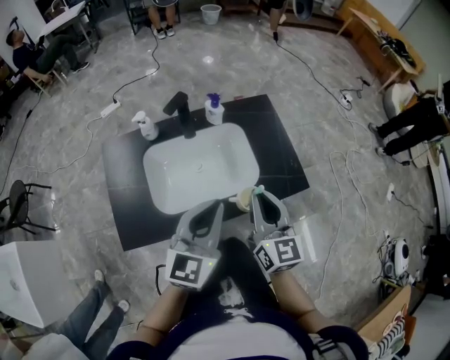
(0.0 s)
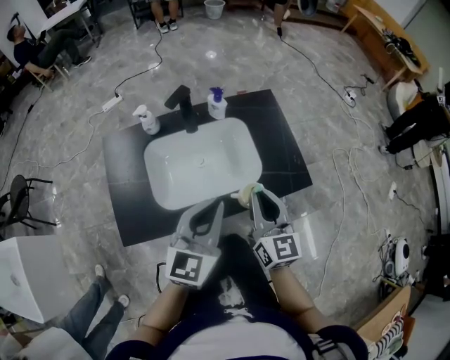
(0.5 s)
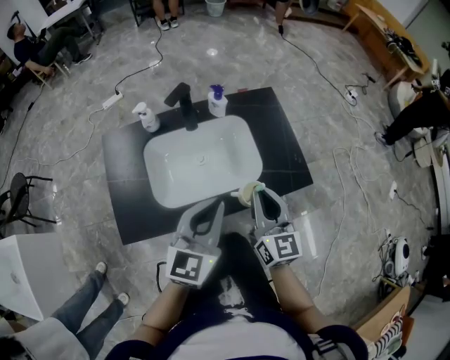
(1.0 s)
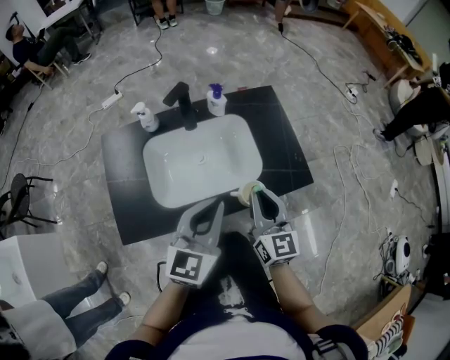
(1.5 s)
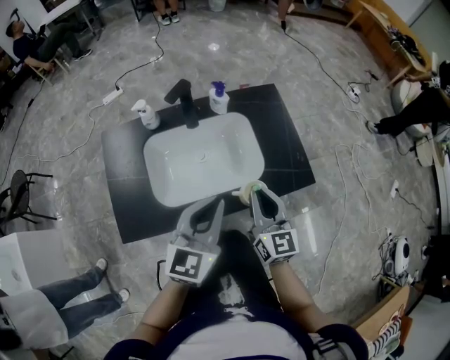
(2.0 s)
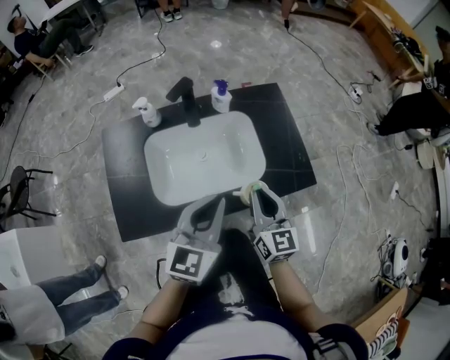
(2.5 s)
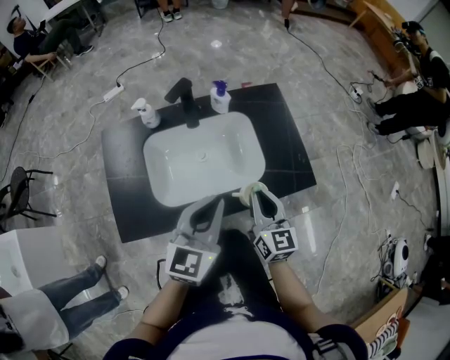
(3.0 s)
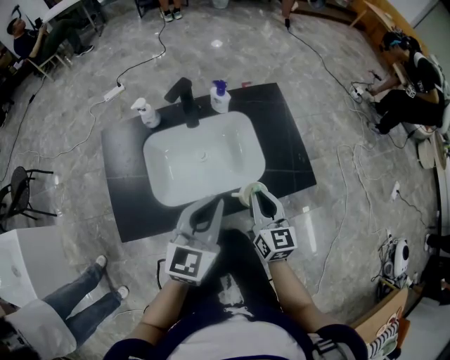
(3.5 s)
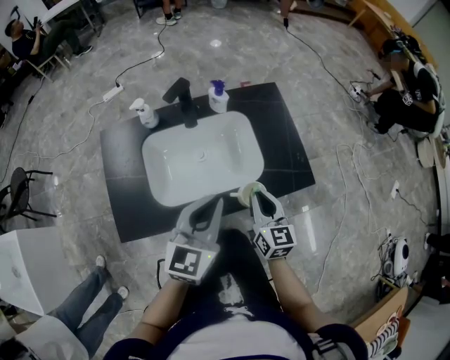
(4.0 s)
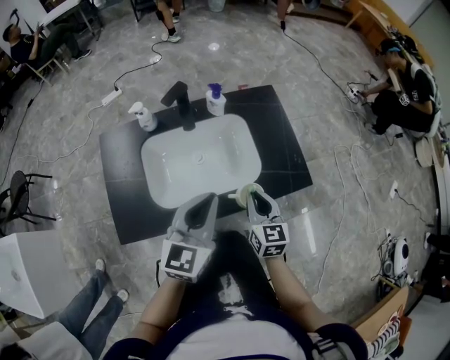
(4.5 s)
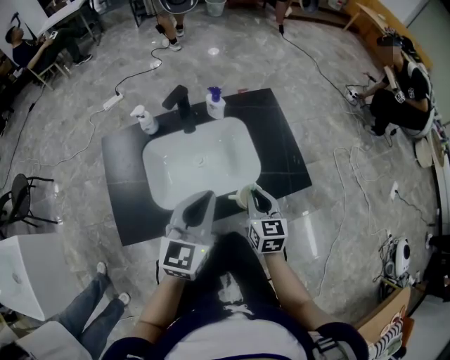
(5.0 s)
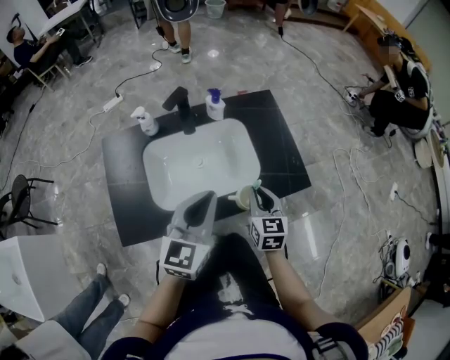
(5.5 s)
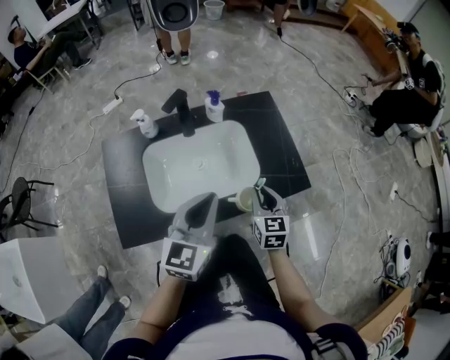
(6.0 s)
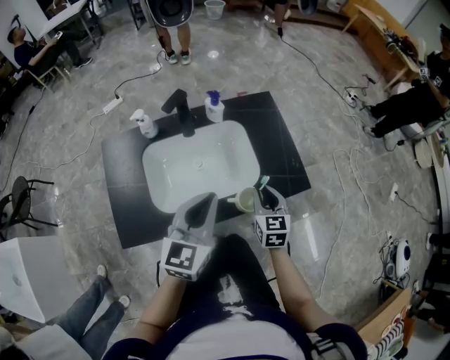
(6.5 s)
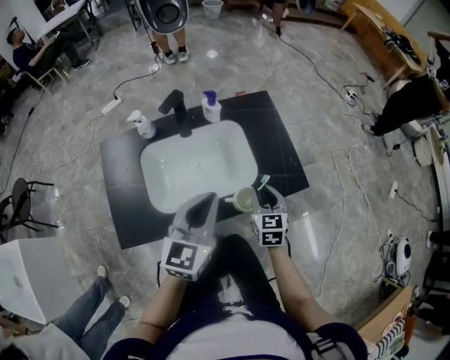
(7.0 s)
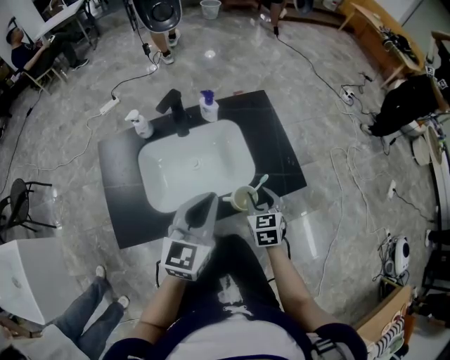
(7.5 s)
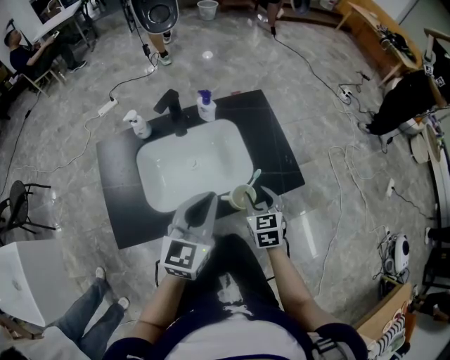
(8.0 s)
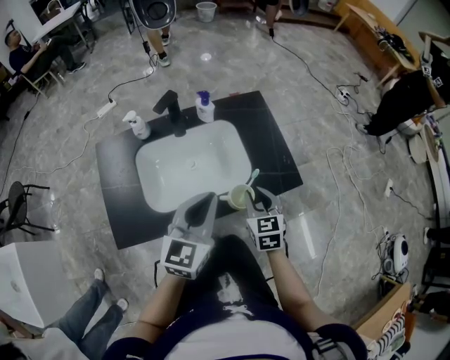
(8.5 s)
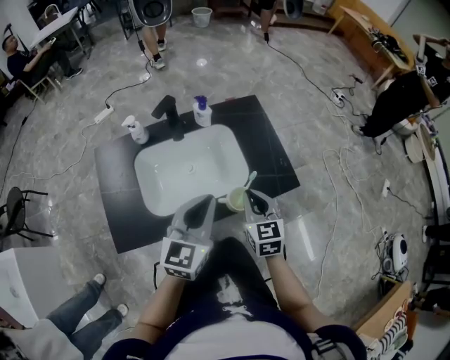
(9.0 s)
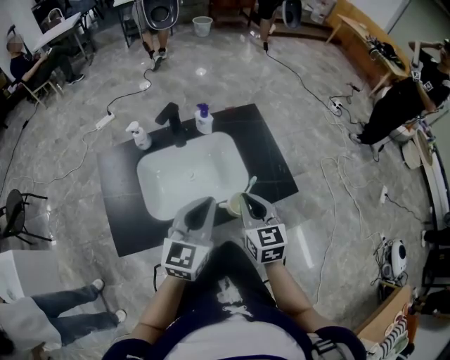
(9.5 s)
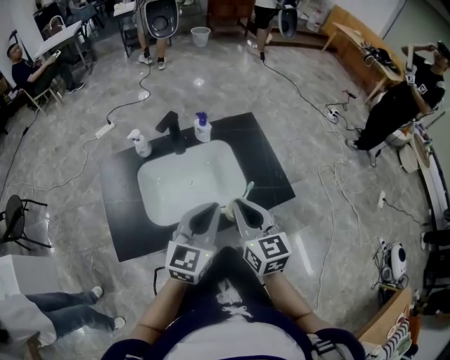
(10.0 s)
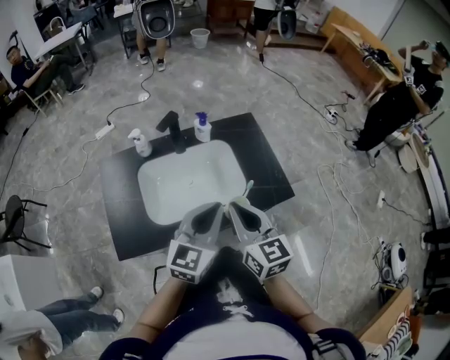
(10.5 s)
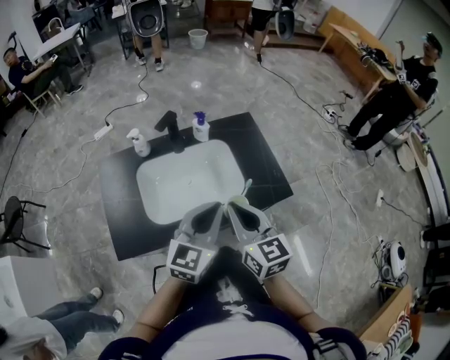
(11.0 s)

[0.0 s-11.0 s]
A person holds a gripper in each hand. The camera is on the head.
0.0 to 2.0 s: The right gripper heads downward, covering approximately 5 cm.
2.0 to 3.5 s: The grippers stay close to where they were, moving slightly.
3.5 to 5.5 s: The grippers stay close to where they were, moving slightly.
5.5 to 7.5 s: The right gripper opens its fingers.
7.5 to 9.0 s: The right gripper shifts about 10 cm upward, and closes up.
9.0 to 11.0 s: The right gripper shifts some 15 cm upward, to the left and backward.

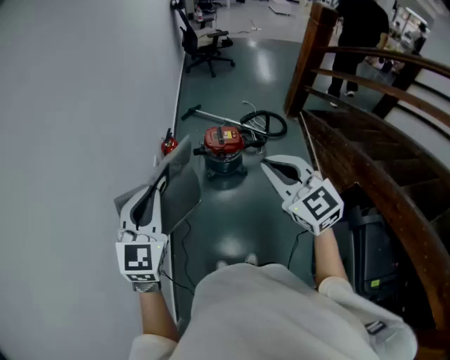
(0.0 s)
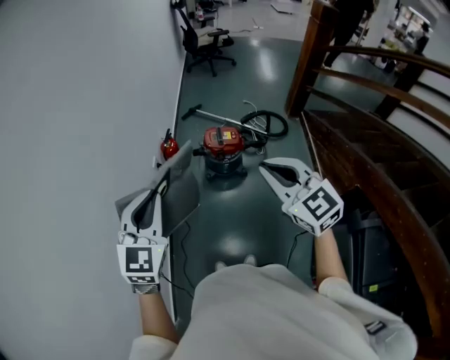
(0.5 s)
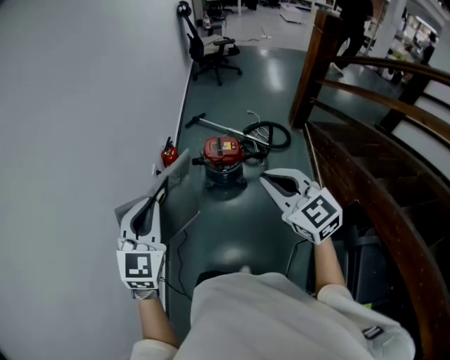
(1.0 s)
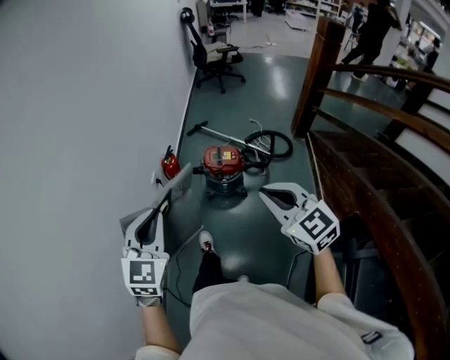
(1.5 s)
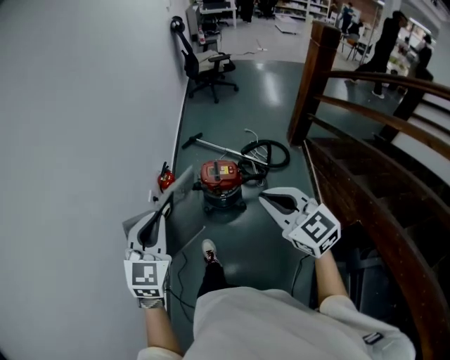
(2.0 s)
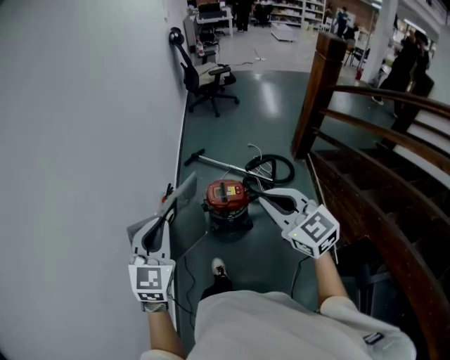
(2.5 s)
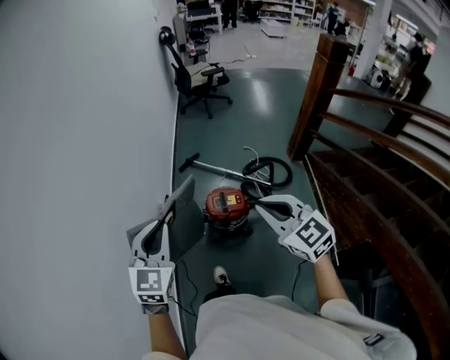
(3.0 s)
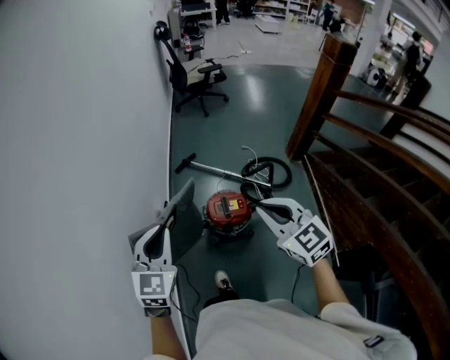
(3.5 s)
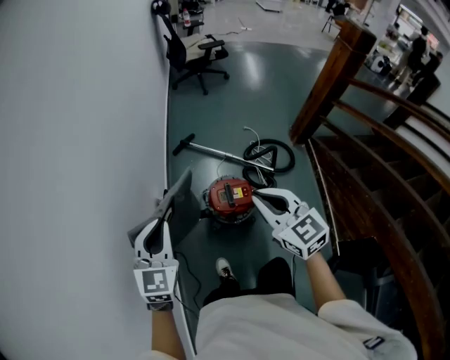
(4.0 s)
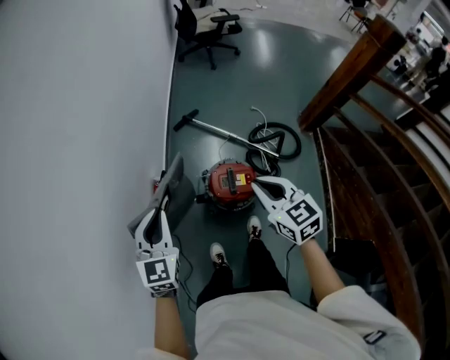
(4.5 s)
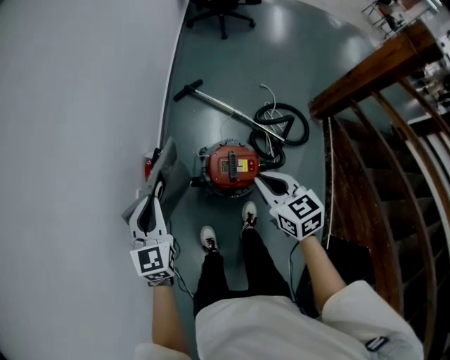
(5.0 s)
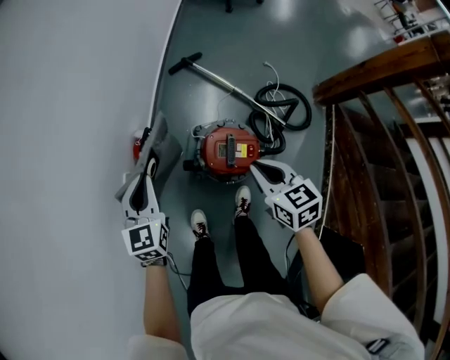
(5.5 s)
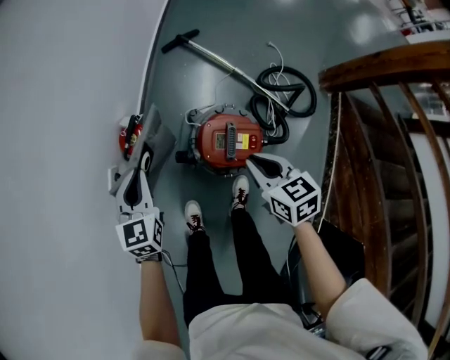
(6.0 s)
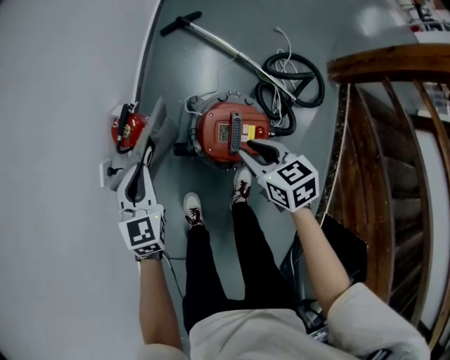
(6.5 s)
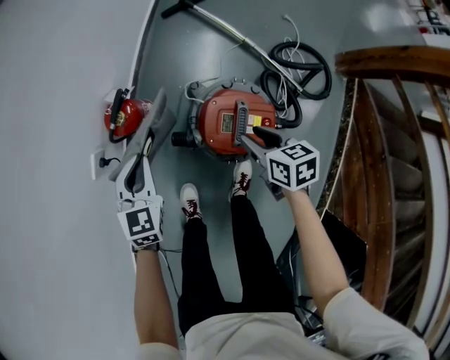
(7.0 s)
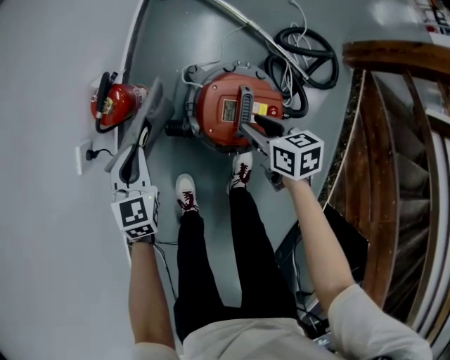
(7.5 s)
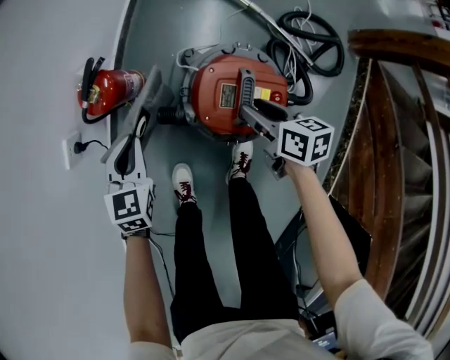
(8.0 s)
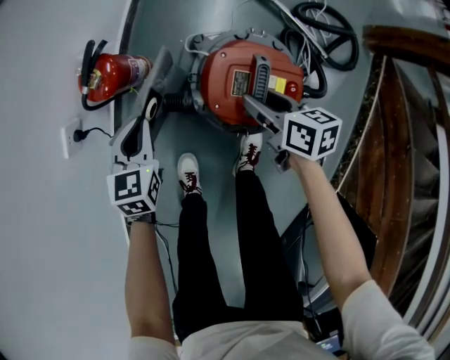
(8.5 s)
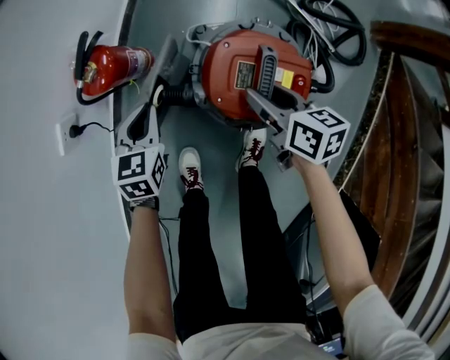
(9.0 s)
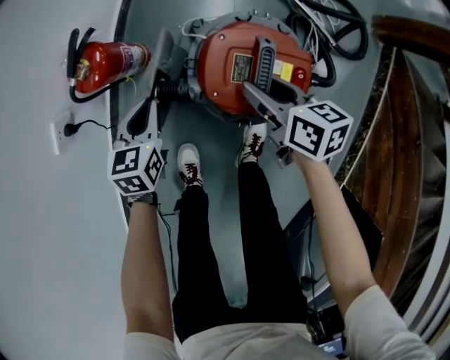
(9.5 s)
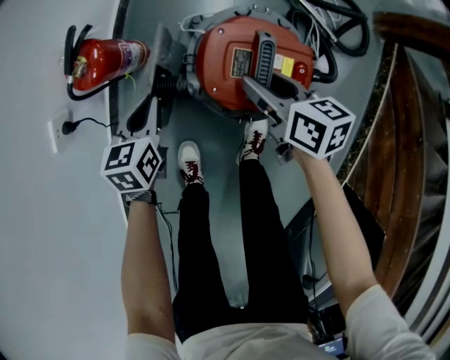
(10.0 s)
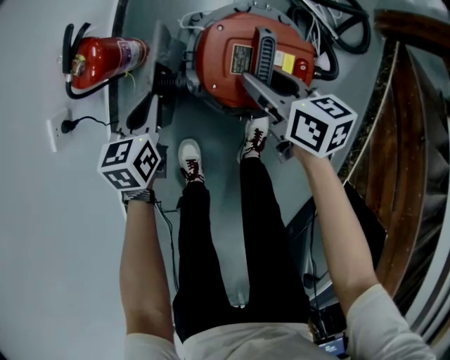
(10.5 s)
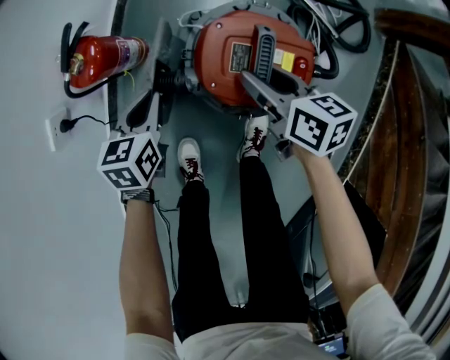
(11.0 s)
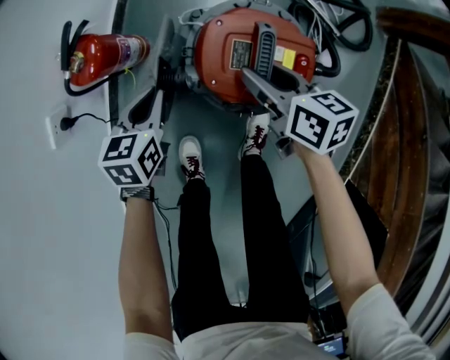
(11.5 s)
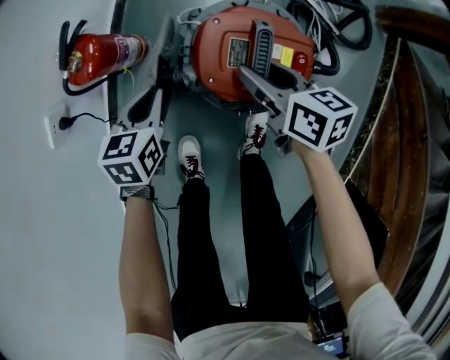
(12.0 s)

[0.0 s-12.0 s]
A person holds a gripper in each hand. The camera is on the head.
0.0 to 2.0 s: The grippers both shift to the right and forward by some 15 cm.
2.0 to 4.0 s: The grippers both shift forward by roughly 35 cm.
4.0 to 6.0 s: Both grippers move downward, about 35 cm. The right gripper swivels some 30 degrees. Meanwhile the left gripper rotates some 30 degrees.
6.0 to 8.0 s: The grippers both shift downward by some 20 cm. The right gripper swivels some 20 degrees, and opens its fingers.
8.0 to 10.0 s: The left gripper moves downward, about 10 cm.
10.0 to 12.0 s: The grippers stay close to where they were, moving slightly.

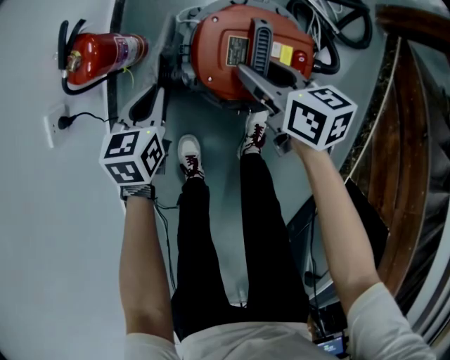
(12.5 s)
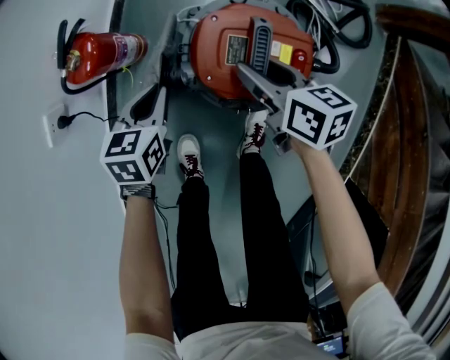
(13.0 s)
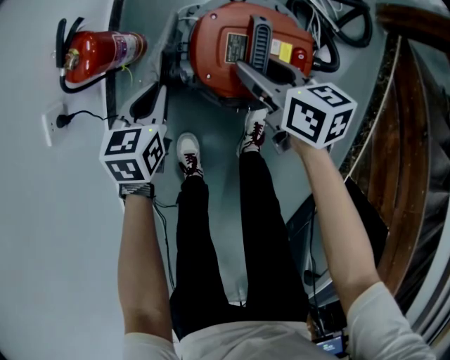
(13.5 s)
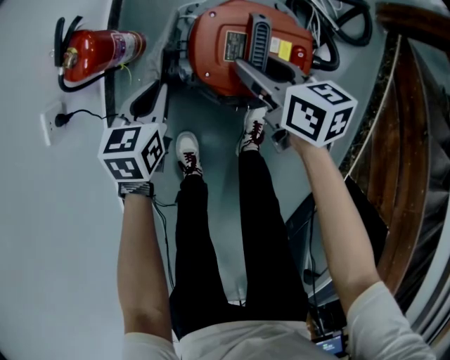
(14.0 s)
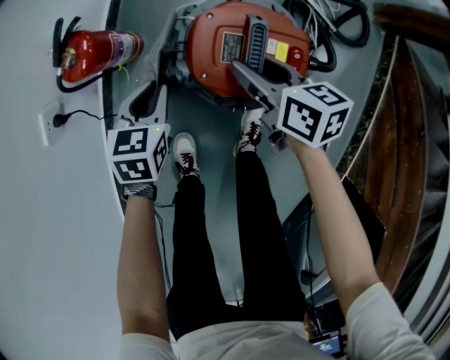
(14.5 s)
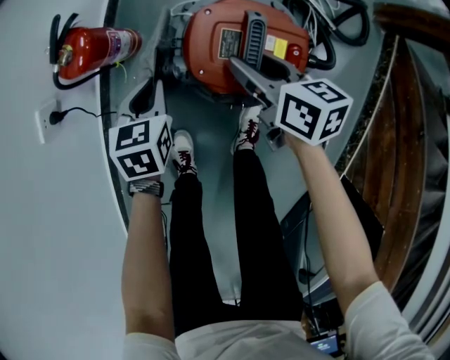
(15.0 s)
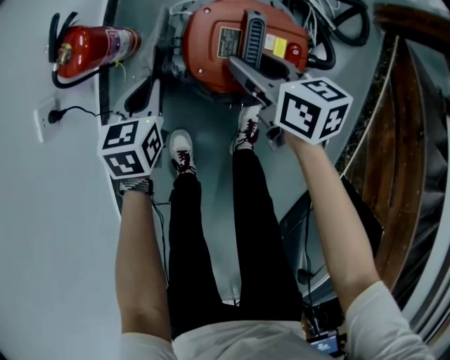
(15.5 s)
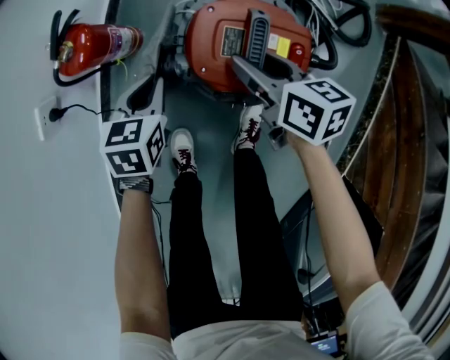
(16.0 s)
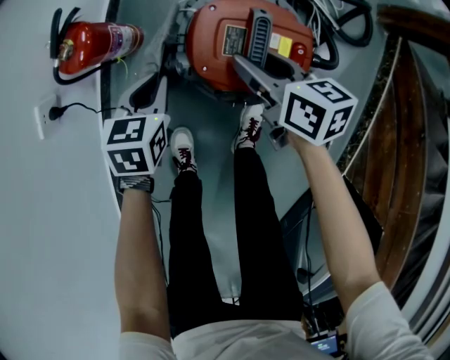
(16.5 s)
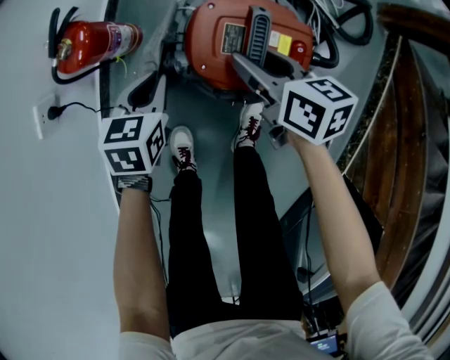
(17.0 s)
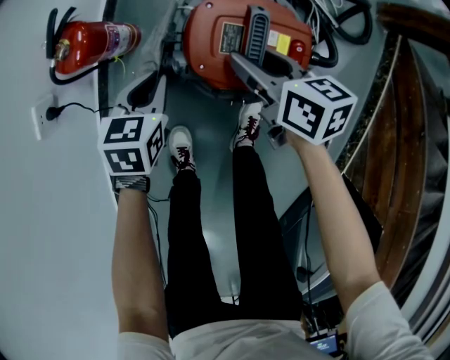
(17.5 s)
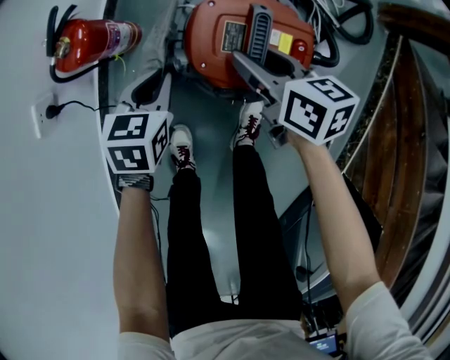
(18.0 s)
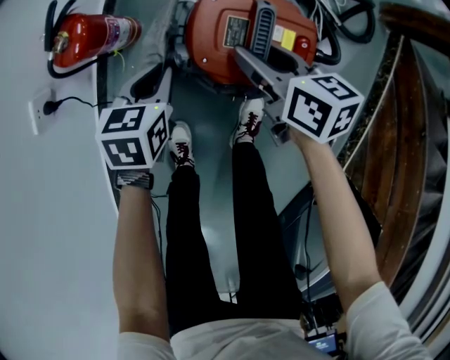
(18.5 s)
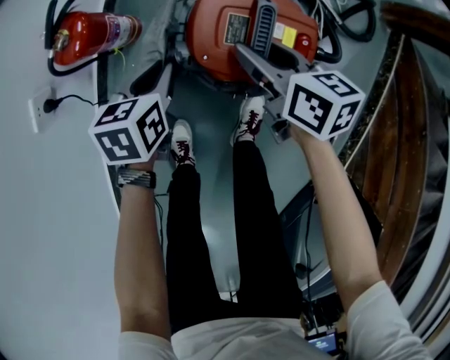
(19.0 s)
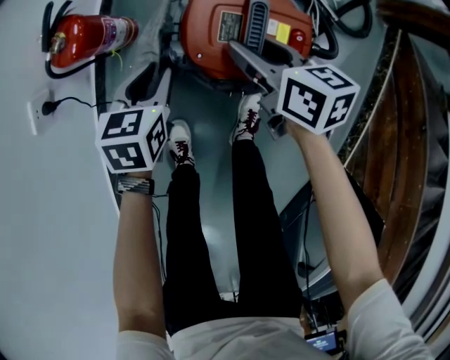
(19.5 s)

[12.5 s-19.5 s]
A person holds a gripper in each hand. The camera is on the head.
12.5 to 16.0 s: The grippers stay close to where they were, moving slightly.
16.0 to 17.5 s: Both grippers stay about where they are.
17.5 to 19.5 s: The grippers stay close to where they were, moving slightly.
